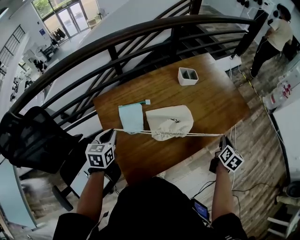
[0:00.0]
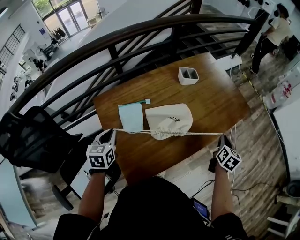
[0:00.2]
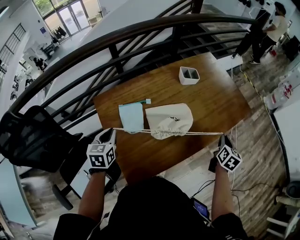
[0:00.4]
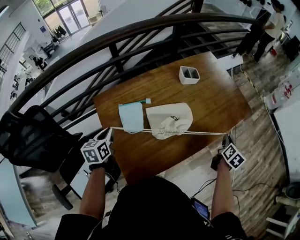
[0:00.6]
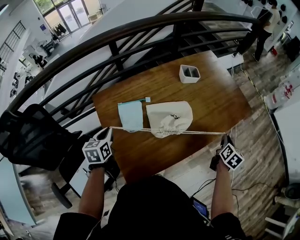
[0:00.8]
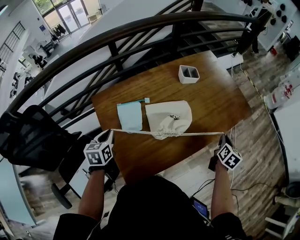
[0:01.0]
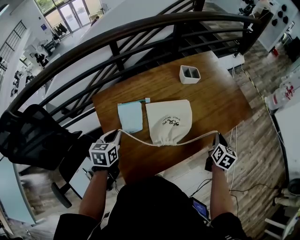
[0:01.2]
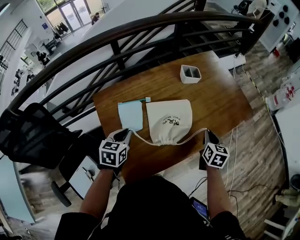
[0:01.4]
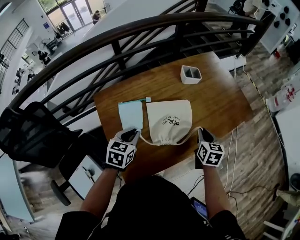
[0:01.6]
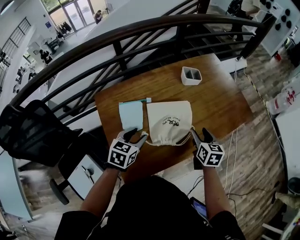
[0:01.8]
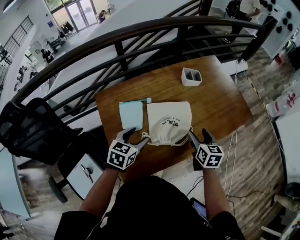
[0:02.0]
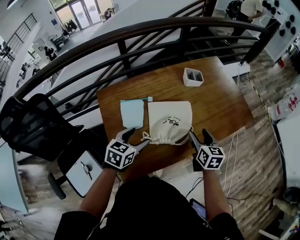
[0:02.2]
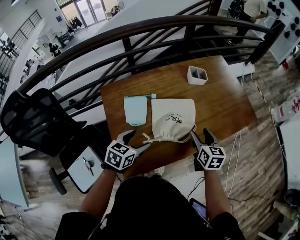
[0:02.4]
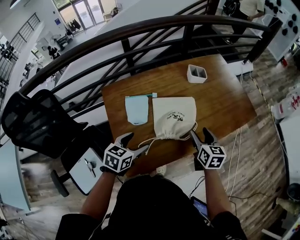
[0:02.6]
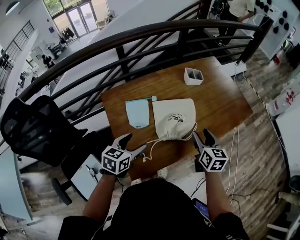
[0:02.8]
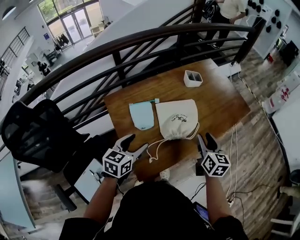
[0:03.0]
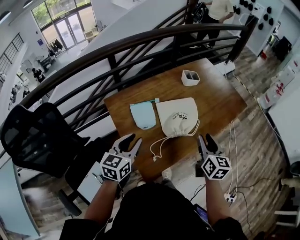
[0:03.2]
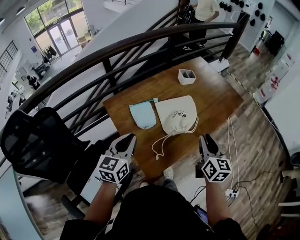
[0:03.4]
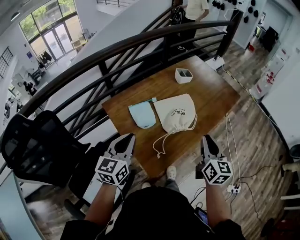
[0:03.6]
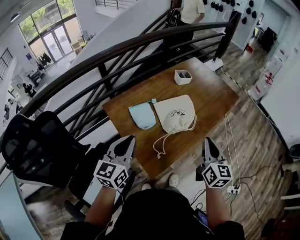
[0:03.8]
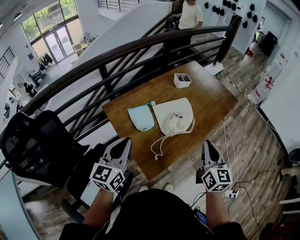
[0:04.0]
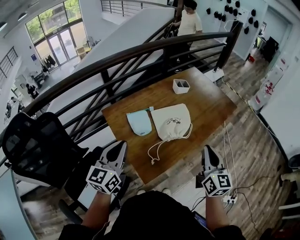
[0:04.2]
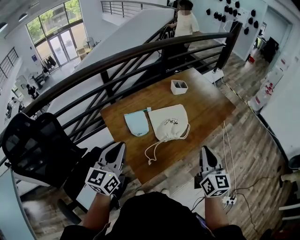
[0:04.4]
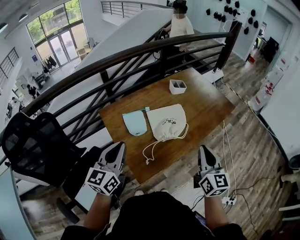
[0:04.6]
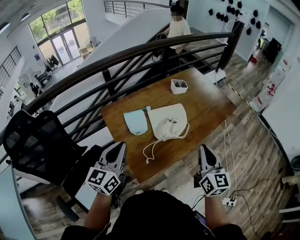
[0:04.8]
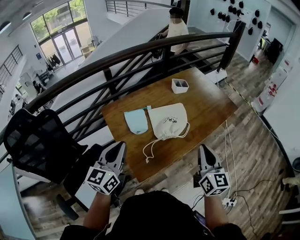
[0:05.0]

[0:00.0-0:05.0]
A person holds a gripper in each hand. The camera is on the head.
0:00.0 to 0:01.6: The right gripper goes about 15 cm to the left, and rotates roughly 30 degrees. Meanwhile the left gripper travels to the right by roughly 10 cm.
0:01.6 to 0:03.4: The right gripper shifts about 20 cm backward, upward and to the left, changes its angle by about 20 degrees, and opens and closes again, while the left gripper heads upward, backward and to the left, covering roughly 20 cm, changes its angle by some 30 degrees, and opens and closes again.
0:03.4 to 0:05.0: Both grippers travel together upward and backward, roughly 10 cm. The right gripper closes its fingers.

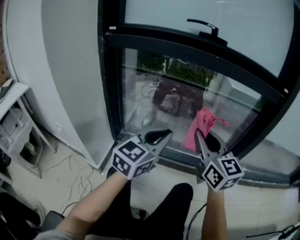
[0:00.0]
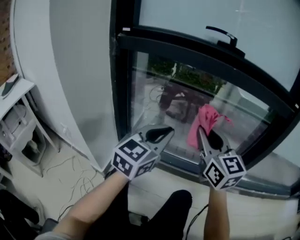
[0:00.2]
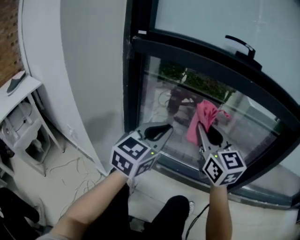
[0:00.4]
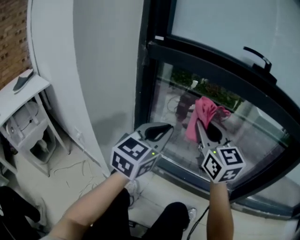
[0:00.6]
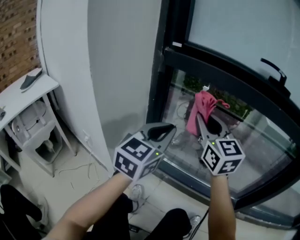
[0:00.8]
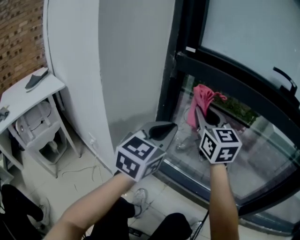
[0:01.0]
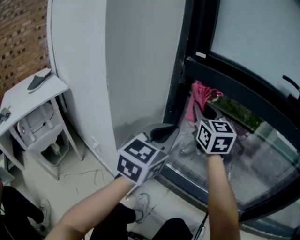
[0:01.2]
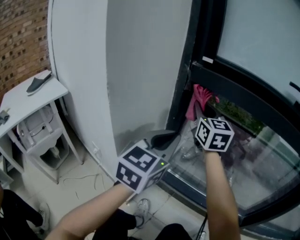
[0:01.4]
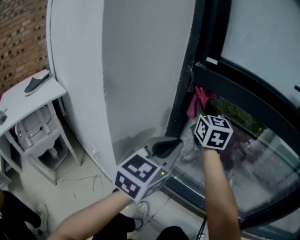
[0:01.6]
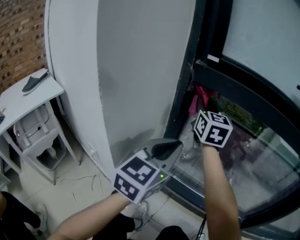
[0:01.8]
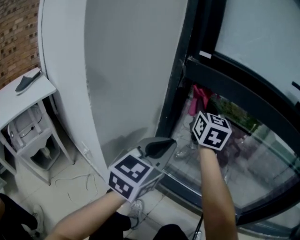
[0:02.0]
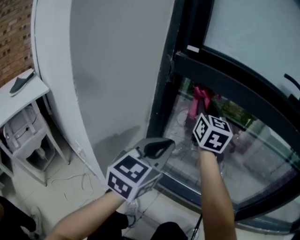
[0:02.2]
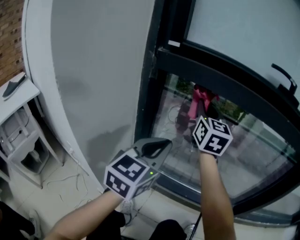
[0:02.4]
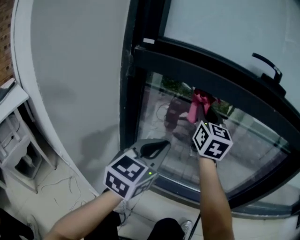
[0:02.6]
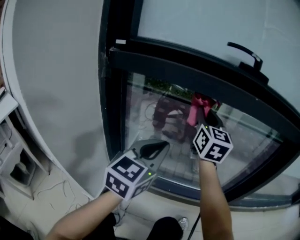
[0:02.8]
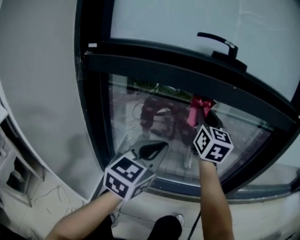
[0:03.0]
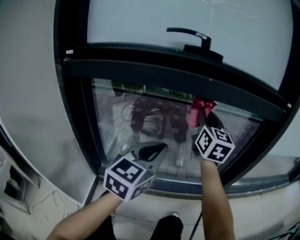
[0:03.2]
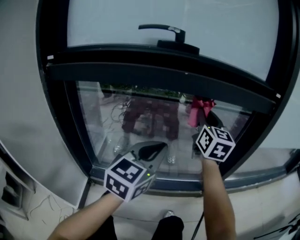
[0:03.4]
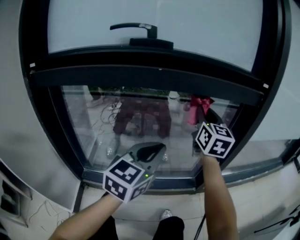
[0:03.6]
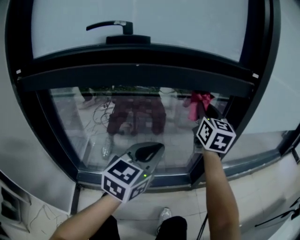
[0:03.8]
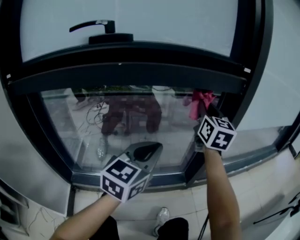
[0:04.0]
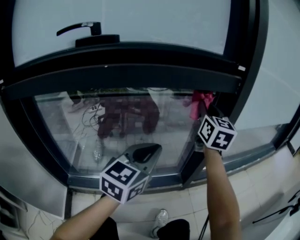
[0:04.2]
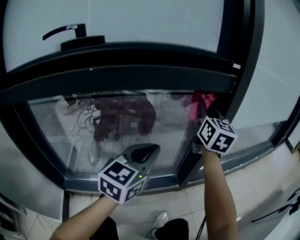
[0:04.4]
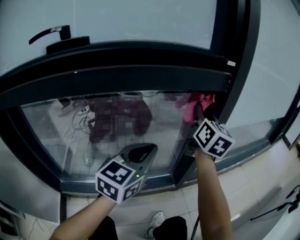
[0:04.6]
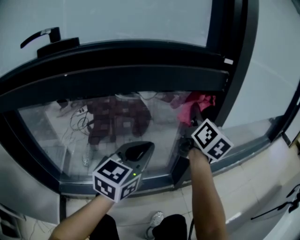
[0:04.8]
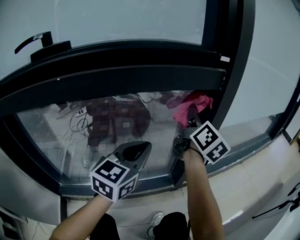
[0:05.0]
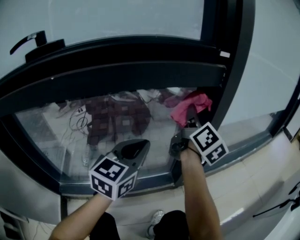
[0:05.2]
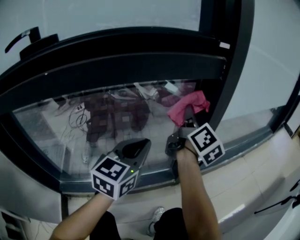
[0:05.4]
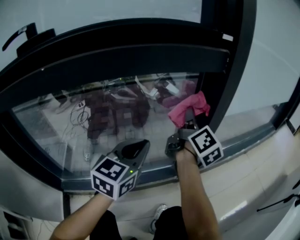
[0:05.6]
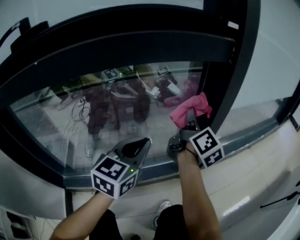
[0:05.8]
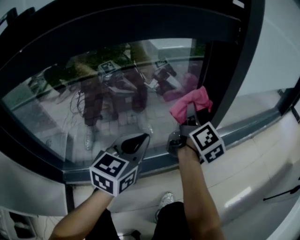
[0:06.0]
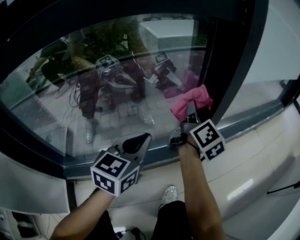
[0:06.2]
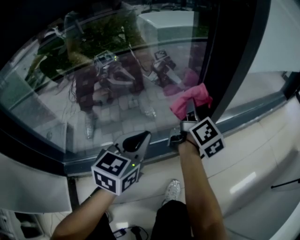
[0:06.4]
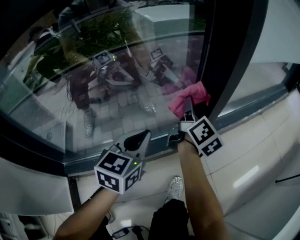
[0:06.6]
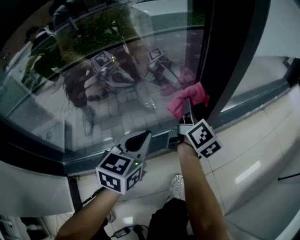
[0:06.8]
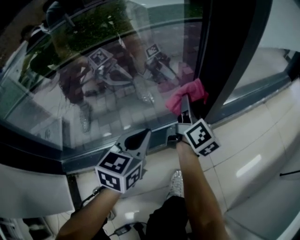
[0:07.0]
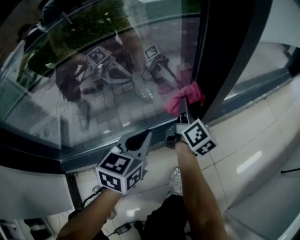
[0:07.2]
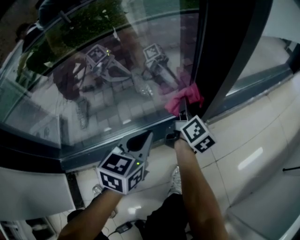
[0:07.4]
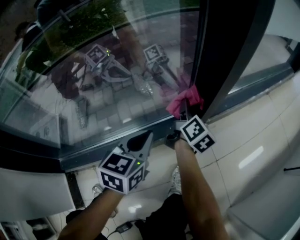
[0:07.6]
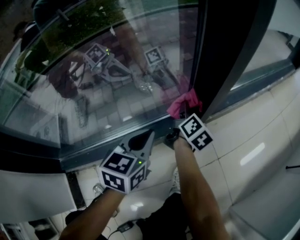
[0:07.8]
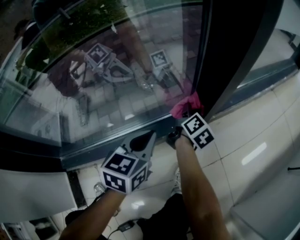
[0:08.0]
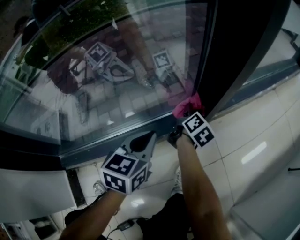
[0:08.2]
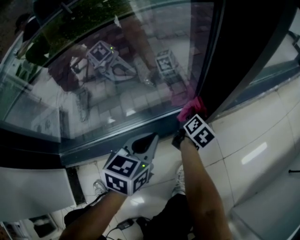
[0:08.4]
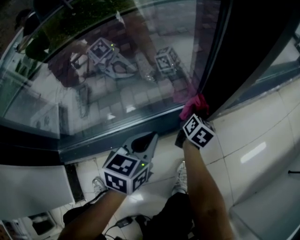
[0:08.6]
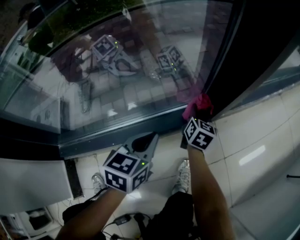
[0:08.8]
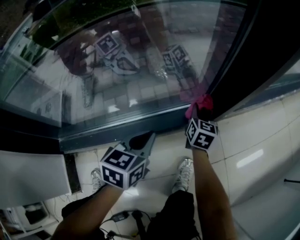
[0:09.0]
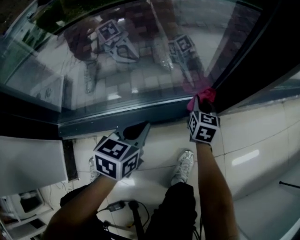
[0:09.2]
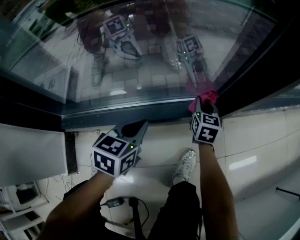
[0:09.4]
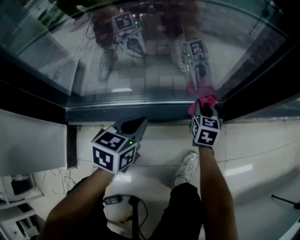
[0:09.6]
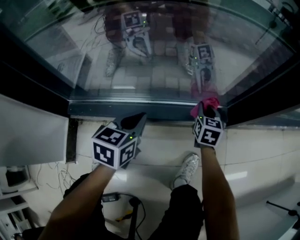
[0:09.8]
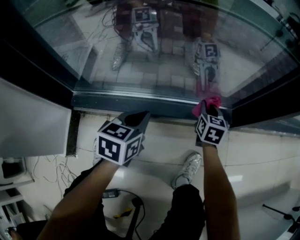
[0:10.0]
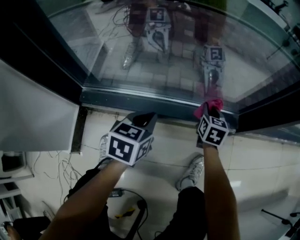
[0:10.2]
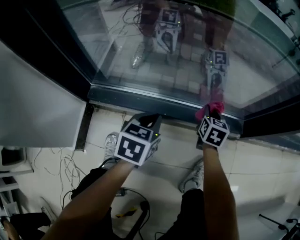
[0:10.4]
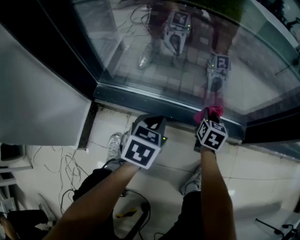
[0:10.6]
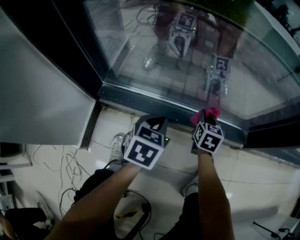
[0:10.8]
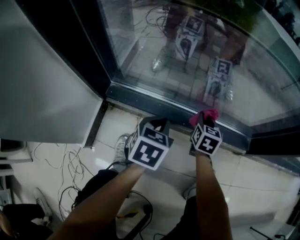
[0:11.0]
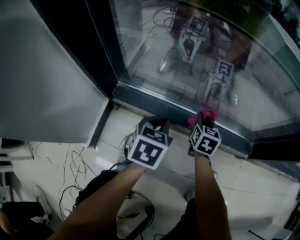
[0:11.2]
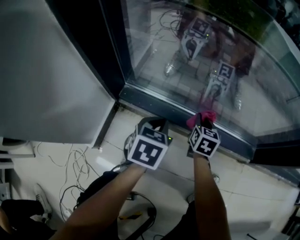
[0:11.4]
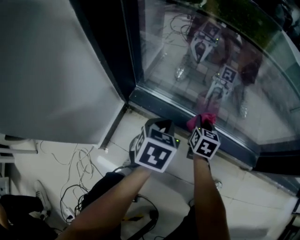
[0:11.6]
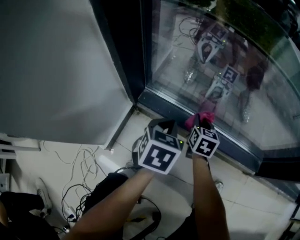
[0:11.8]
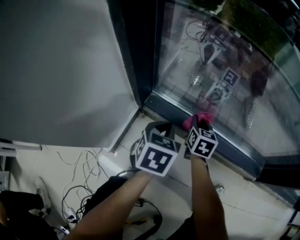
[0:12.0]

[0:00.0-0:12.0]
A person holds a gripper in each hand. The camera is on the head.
0:00.0 to 0:01.6: The right gripper is displaced to the left and forward by roughly 50 cm. Meanwhile the left gripper goes approximately 30 cm to the left and forward, and changes its angle by roughly 20 degrees.
0:01.6 to 0:03.0: Both grippers move to the right, approximately 30 cm. The right gripper rotates approximately 30 degrees, while the left gripper changes its angle by about 20 degrees.
0:03.0 to 0:04.4: The right gripper shifts some 40 cm to the right, and swivels roughly 20 degrees. The left gripper shifts approximately 30 cm to the right and forward, and rotates some 20 degrees.
0:04.4 to 0:06.0: The right gripper moves downward, about 20 cm, and twists approximately 50 degrees clockwise, seen from behind. The left gripper shifts roughly 10 cm downward.
0:06.0 to 0:07.6: The two grippers go about 25 cm downward.
0:07.6 to 0:09.0: The left gripper travels downward by roughly 5 cm, while the right gripper is displaced downward by some 10 cm, and rotates around the line of its fingers by some 40 degrees, counterclockwise from behind.
0:09.0 to 0:10.4: The right gripper shifts about 20 cm to the left, and turns by roughly 30 degrees. The left gripper goes some 20 cm to the left and backward, and changes its angle by roughly 20 degrees.
0:10.4 to 0:12.0: The right gripper shifts roughly 35 cm to the left, and rotates about 20 degrees, while the left gripper shifts roughly 20 cm to the left.

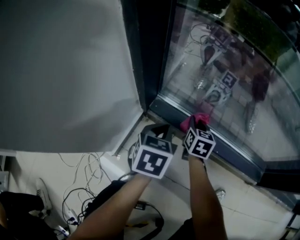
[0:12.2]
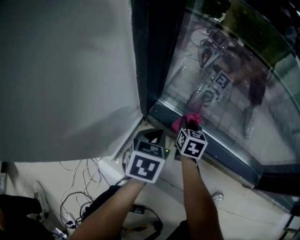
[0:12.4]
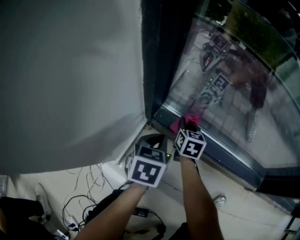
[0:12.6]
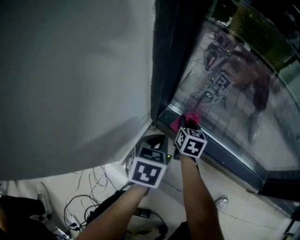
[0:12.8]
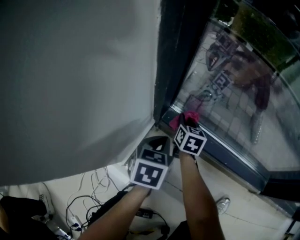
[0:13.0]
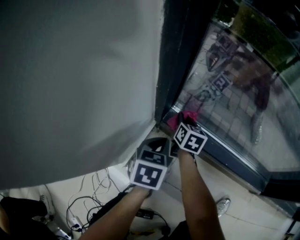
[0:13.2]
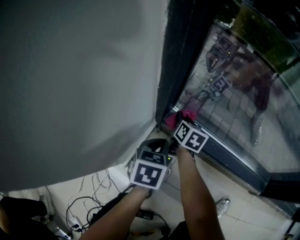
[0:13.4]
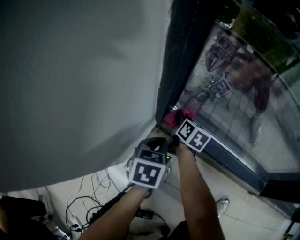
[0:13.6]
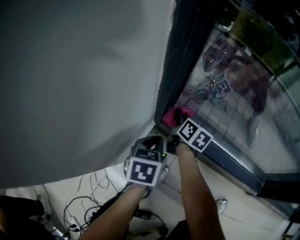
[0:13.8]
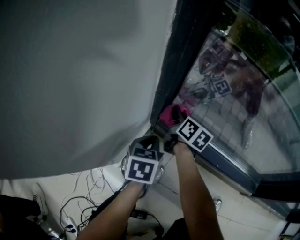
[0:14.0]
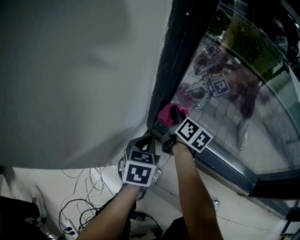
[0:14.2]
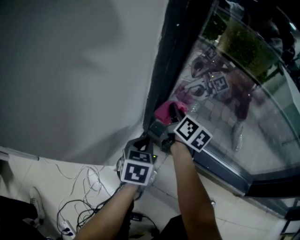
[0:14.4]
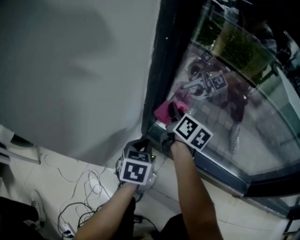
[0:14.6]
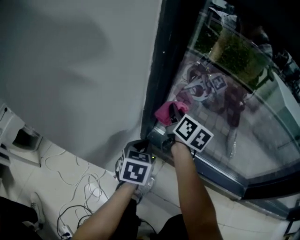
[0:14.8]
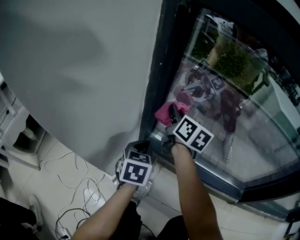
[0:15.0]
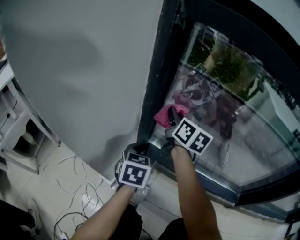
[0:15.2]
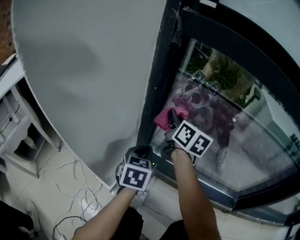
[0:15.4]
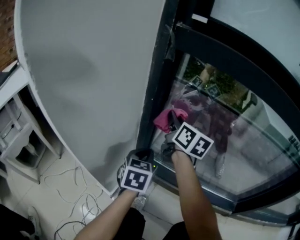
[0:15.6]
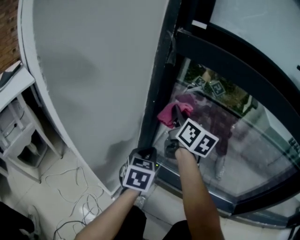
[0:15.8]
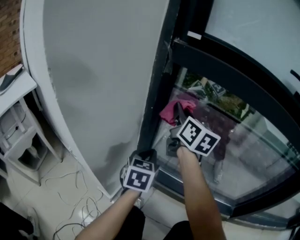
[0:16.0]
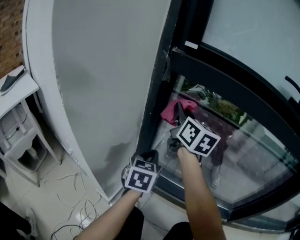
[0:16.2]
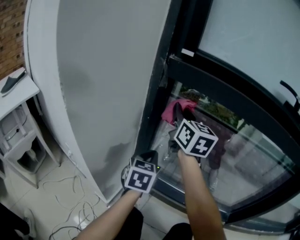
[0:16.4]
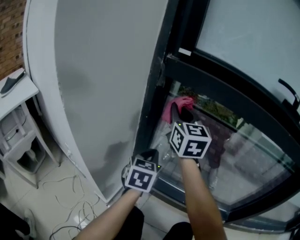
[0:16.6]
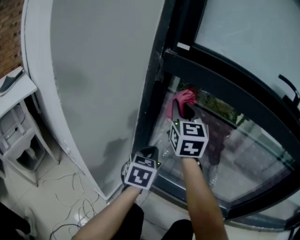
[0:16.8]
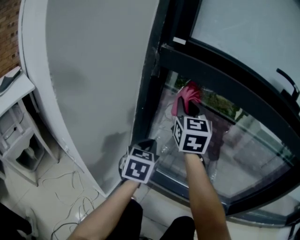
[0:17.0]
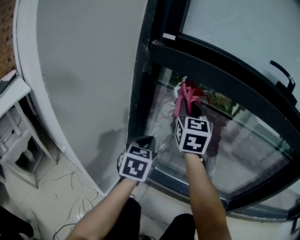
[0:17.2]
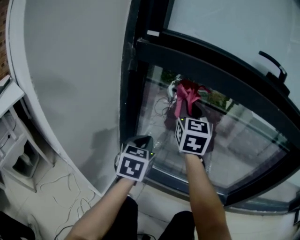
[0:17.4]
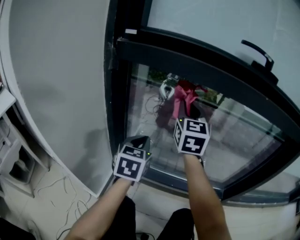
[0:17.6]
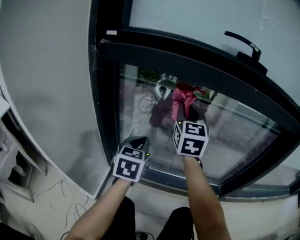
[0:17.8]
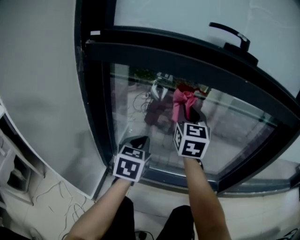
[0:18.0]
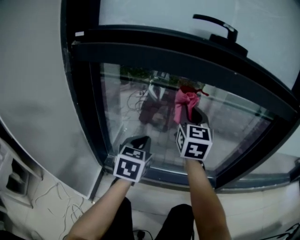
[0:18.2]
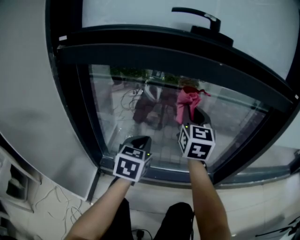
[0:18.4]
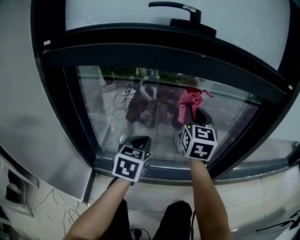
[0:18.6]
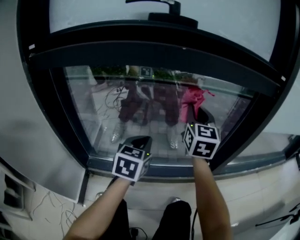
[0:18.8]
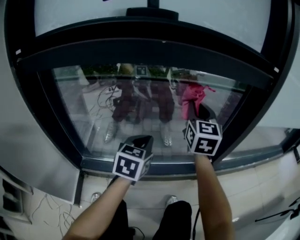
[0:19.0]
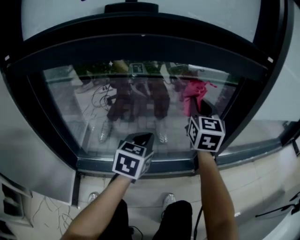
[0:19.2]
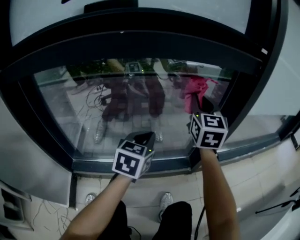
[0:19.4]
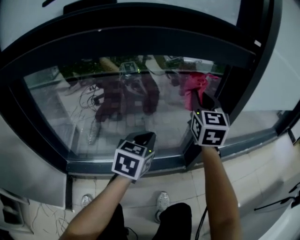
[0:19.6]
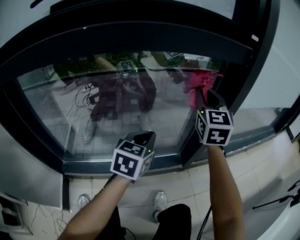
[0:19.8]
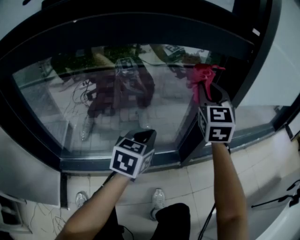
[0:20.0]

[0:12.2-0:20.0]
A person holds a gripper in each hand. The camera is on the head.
0:12.2 to 0:13.8: The right gripper is displaced to the left by some 15 cm, and rotates roughly 30 degrees, while the left gripper shifts about 10 cm to the left.
0:13.8 to 0:15.4: The right gripper is displaced upward by roughly 30 cm, and changes its angle by about 20 degrees; the left gripper goes roughly 20 cm upward.
0:15.4 to 0:16.8: The right gripper moves upward, about 20 cm, and rotates around the line of its fingers by approximately 40 degrees, counterclockwise from behind; the left gripper moves upward, some 10 cm.
0:16.8 to 0:18.4: The right gripper moves to the right, roughly 35 cm, and changes its angle by roughly 30 degrees; the left gripper moves to the right, approximately 25 cm, and swivels approximately 20 degrees.
0:18.4 to 0:20.0: Both grippers travel together to the right, approximately 30 cm. The right gripper changes its angle by about 20 degrees. Meanwhile the left gripper changes its angle by some 20 degrees.
